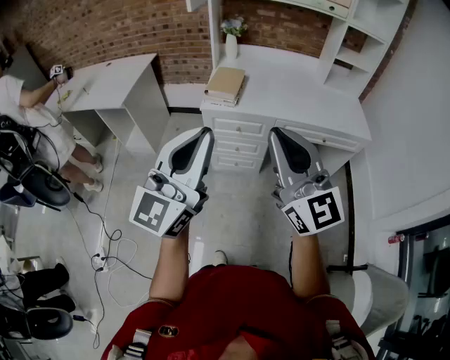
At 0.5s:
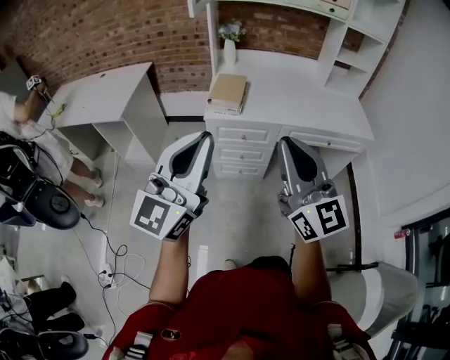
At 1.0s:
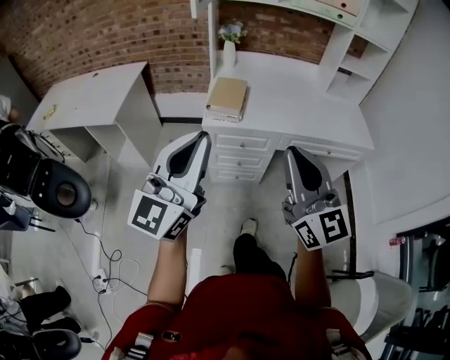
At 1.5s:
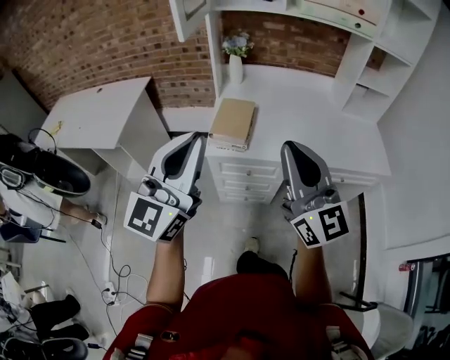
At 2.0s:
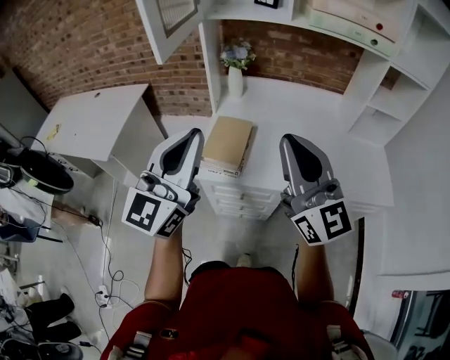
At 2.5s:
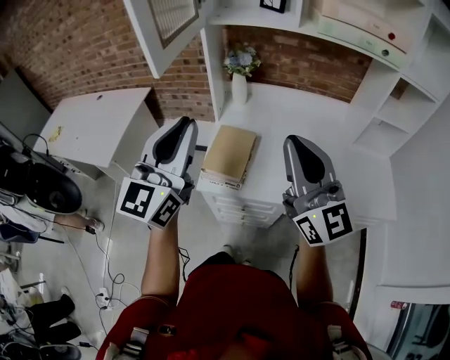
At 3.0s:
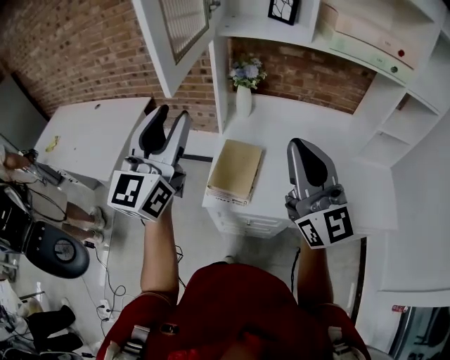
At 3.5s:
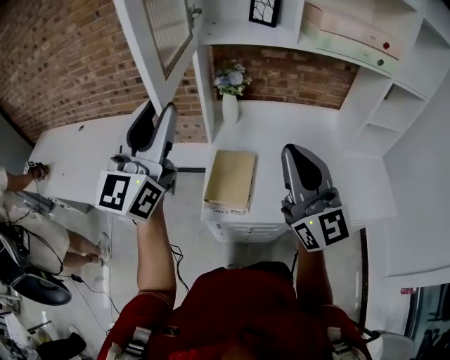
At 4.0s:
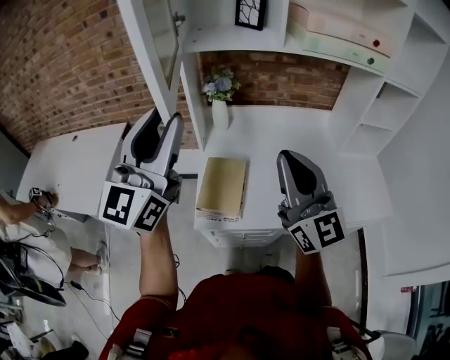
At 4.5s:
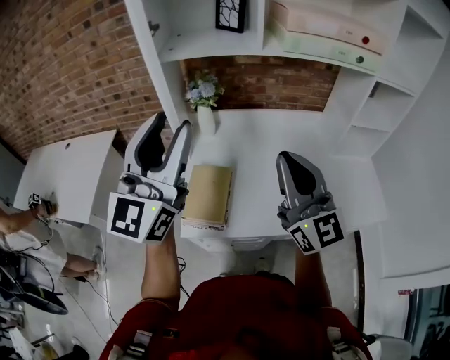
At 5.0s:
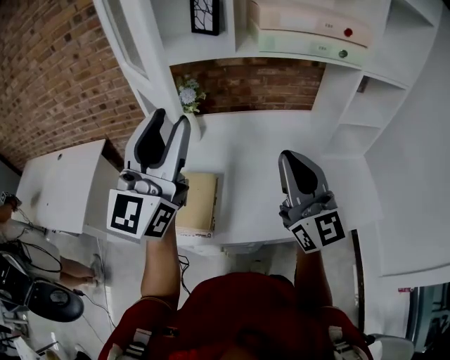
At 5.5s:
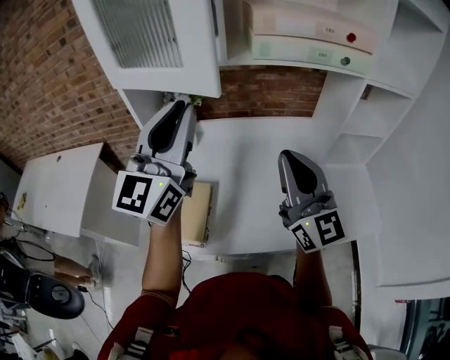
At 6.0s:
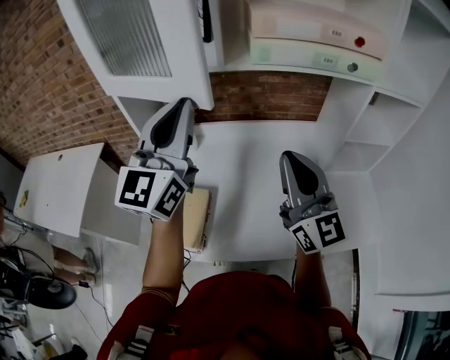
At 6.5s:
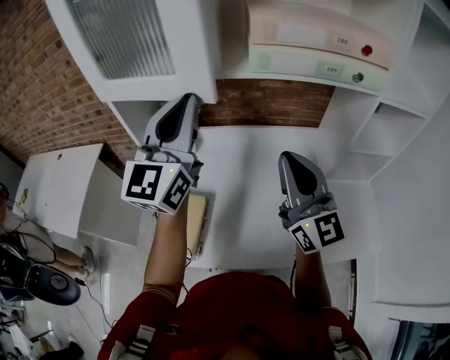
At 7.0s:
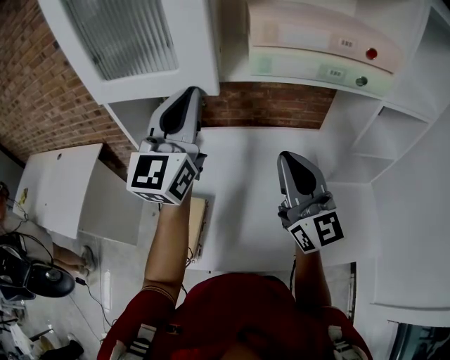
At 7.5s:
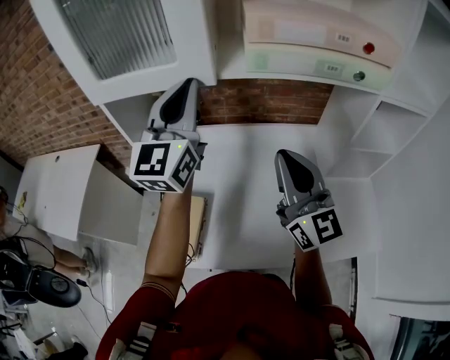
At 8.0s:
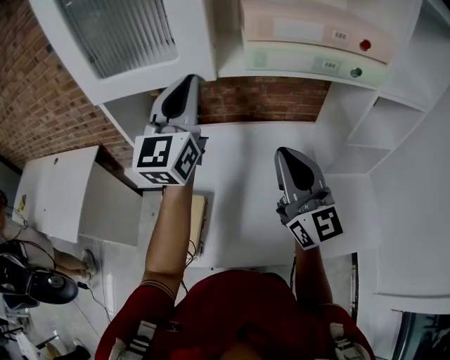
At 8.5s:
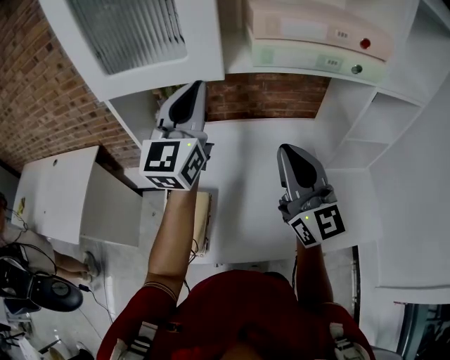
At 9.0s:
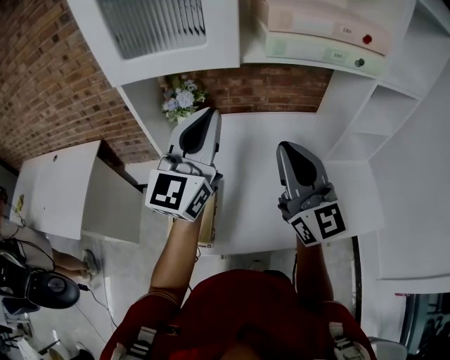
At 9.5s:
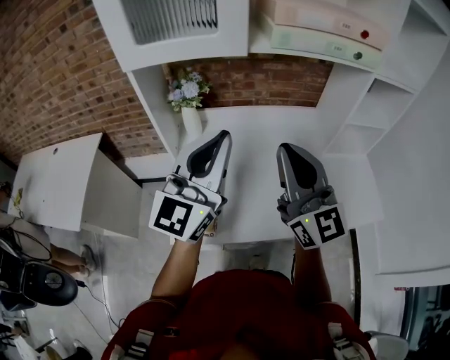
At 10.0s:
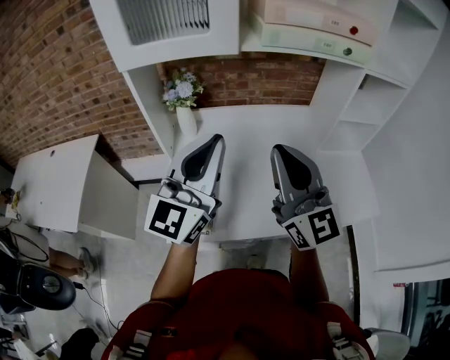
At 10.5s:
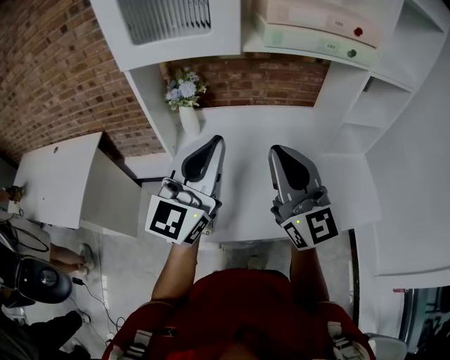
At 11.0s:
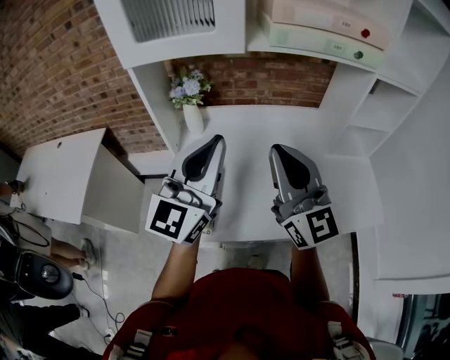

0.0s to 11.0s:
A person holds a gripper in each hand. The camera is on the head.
0.0s to 2.0s: The two grippers go approximately 40 cm forward.
2.0s to 3.5s: The right gripper travels forward by about 10 cm. Meanwhile the left gripper goes approximately 20 cm forward, to the left and upward, and opens.
3.5s to 5.5s: The grippers both shift to the right and forward by about 25 cm.
5.5s to 7.5s: The left gripper goes roughly 15 cm forward. The right gripper heads forward, covering approximately 10 cm.
7.5s to 9.0s: The left gripper moves backward, roughly 10 cm. The right gripper is displaced backward and to the left by about 10 cm.
9.0s to 11.0s: The right gripper travels backward by some 5 cm, while the left gripper goes some 10 cm backward.

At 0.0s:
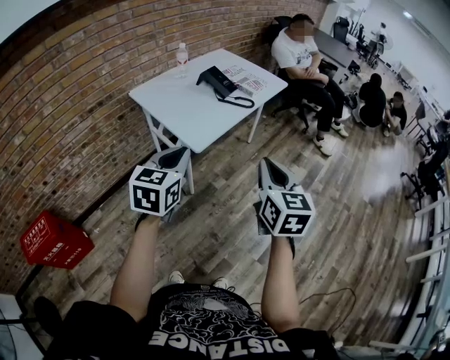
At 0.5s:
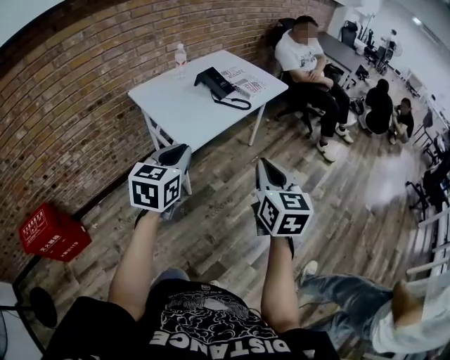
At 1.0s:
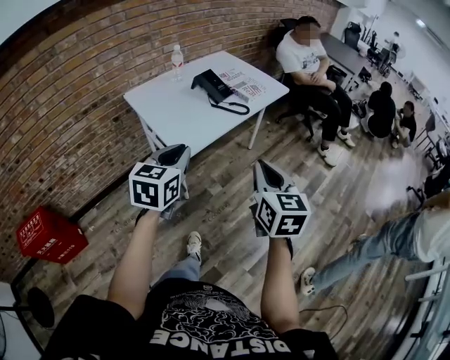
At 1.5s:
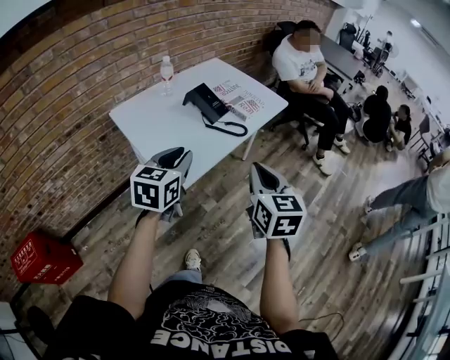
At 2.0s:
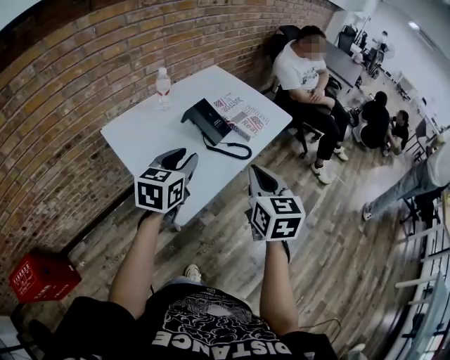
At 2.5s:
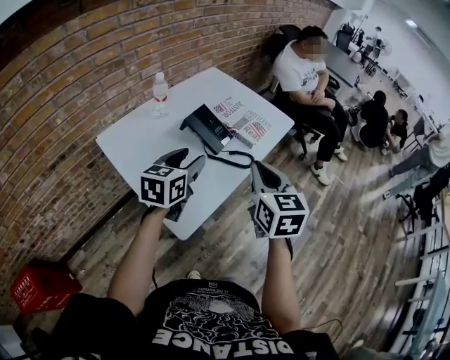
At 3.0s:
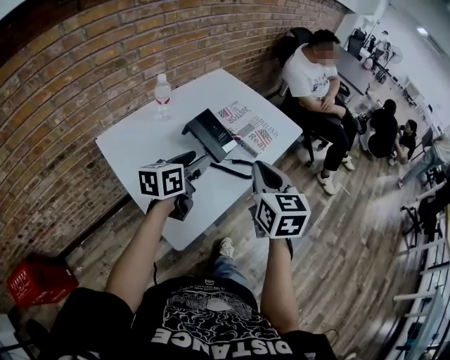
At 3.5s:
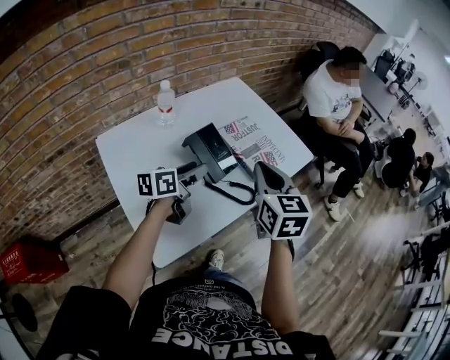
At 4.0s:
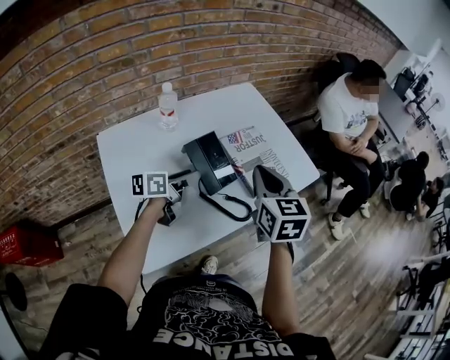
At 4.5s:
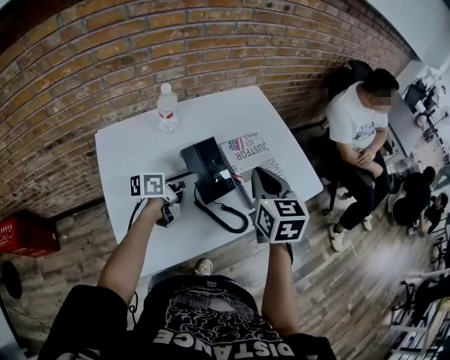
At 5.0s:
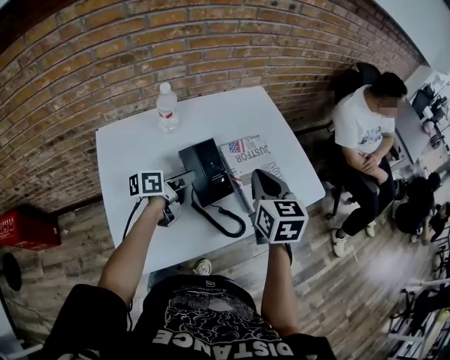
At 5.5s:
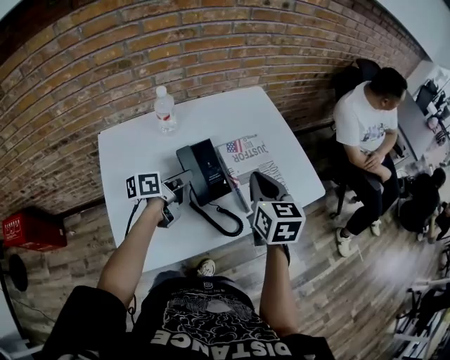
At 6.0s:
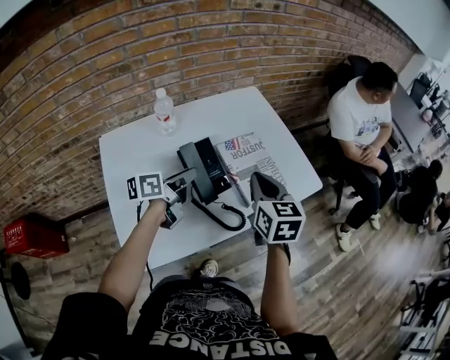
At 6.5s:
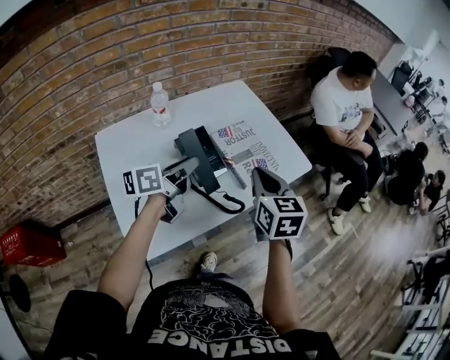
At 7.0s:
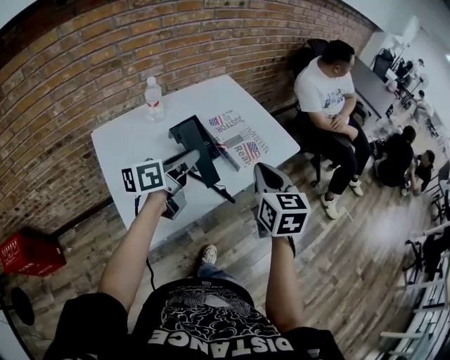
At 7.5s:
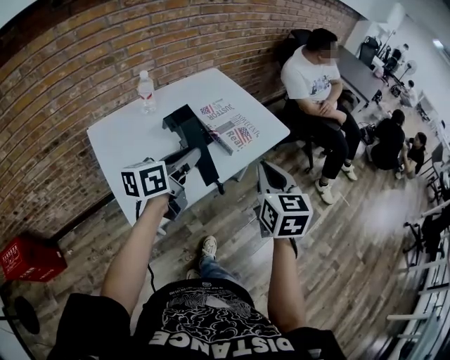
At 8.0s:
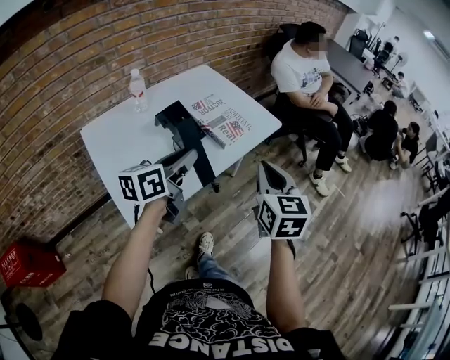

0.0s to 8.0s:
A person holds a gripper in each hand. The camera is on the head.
0.0s to 2.0s: Both grippers move forward, approximately 35 cm. The left gripper opens up.
2.0s to 4.0s: The left gripper shifts approximately 25 cm forward and downward, rolls counterclockwise, seen from behind, by approximately 40 degrees, and opens up; the right gripper shifts roughly 30 cm forward.
4.0s to 6.0s: The left gripper moves about 5 cm, and closes its fingers; the right gripper changes place by roughly 5 cm.
6.0s to 8.0s: The right gripper heads backward and to the right, covering about 25 cm, and turns by about 20 degrees; the left gripper heads backward, upward and to the right, covering roughly 25 cm, and rotates some 20 degrees.

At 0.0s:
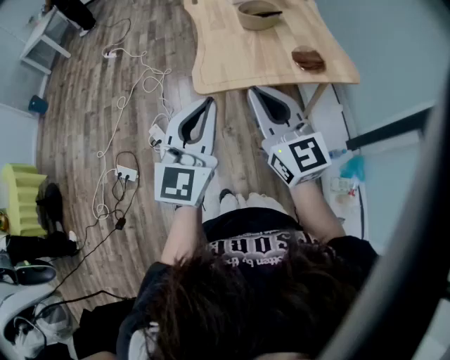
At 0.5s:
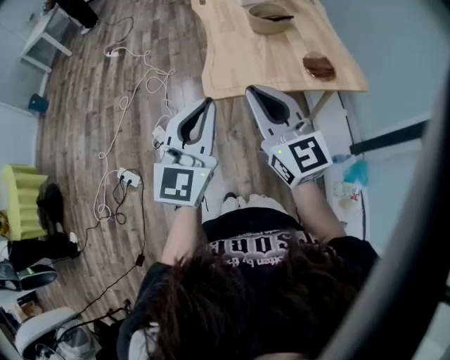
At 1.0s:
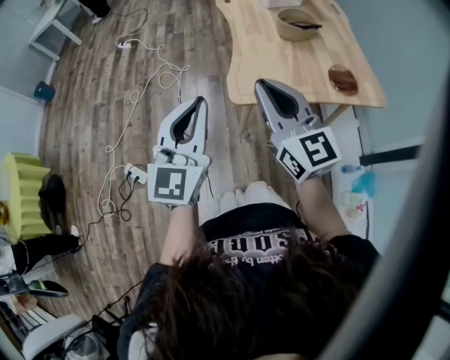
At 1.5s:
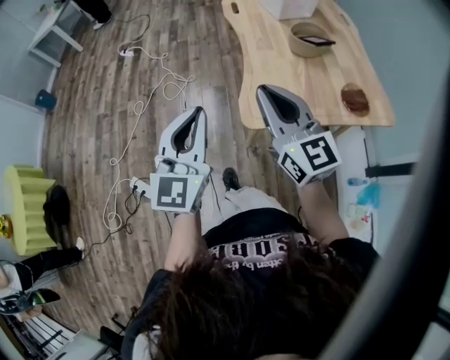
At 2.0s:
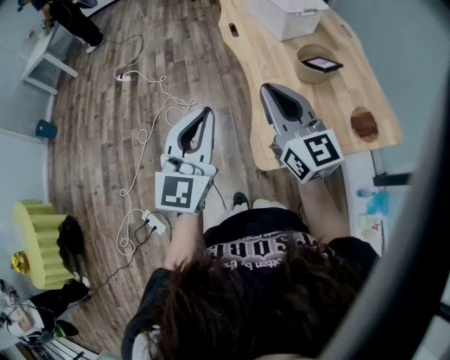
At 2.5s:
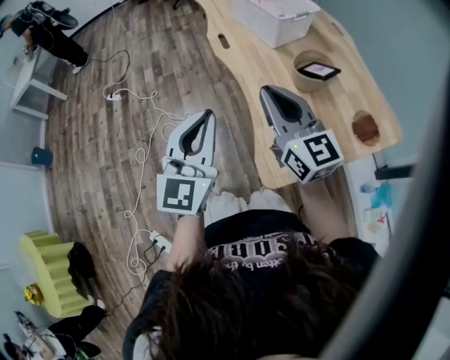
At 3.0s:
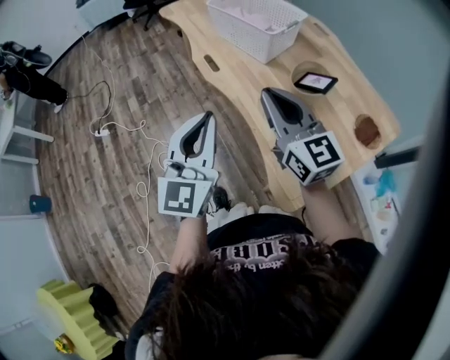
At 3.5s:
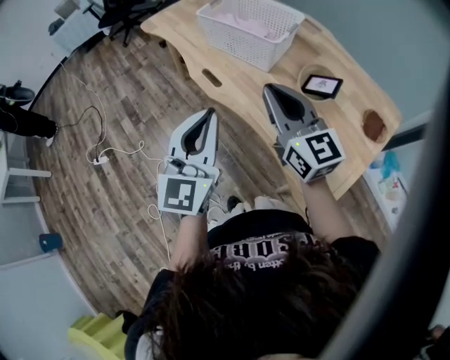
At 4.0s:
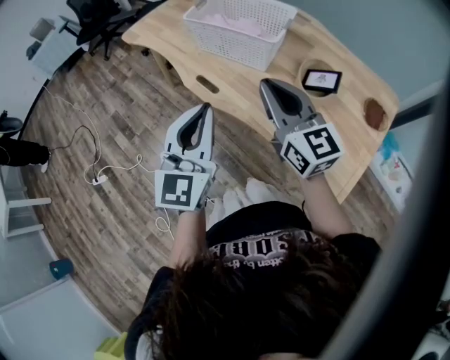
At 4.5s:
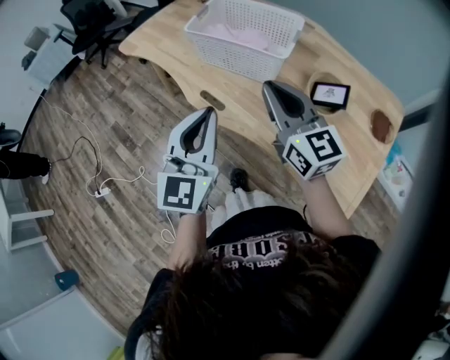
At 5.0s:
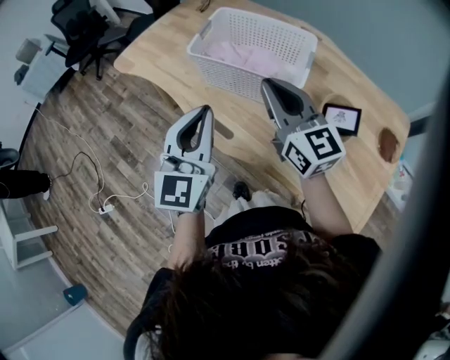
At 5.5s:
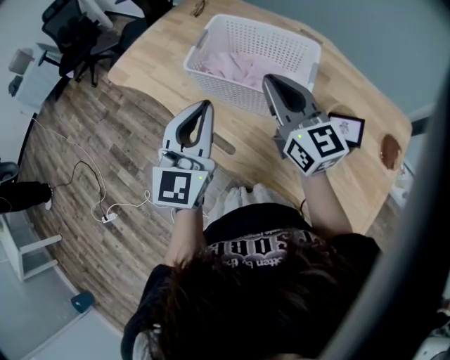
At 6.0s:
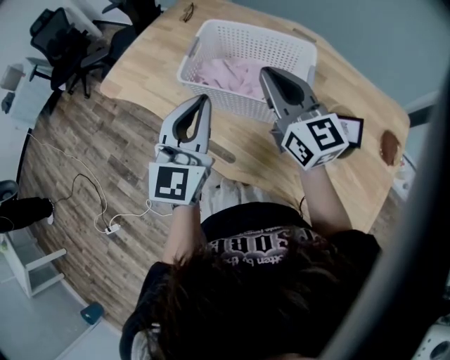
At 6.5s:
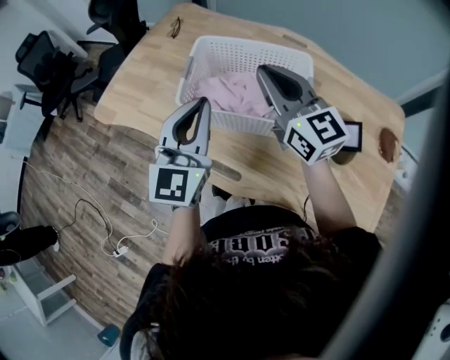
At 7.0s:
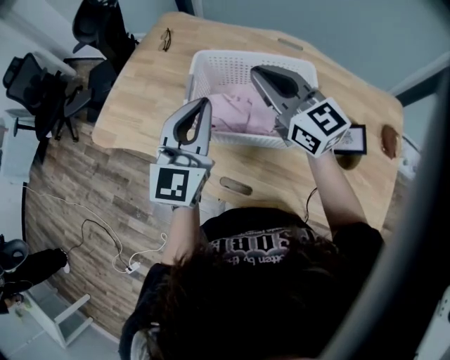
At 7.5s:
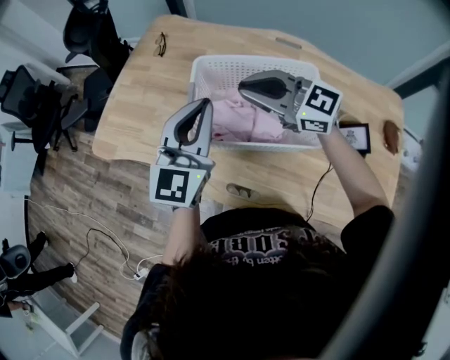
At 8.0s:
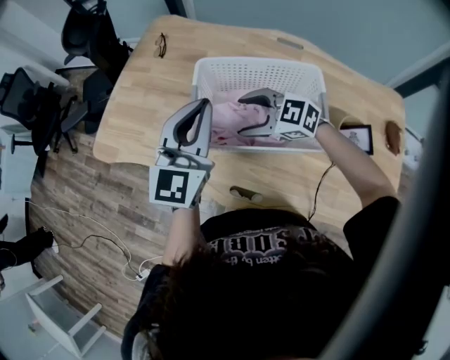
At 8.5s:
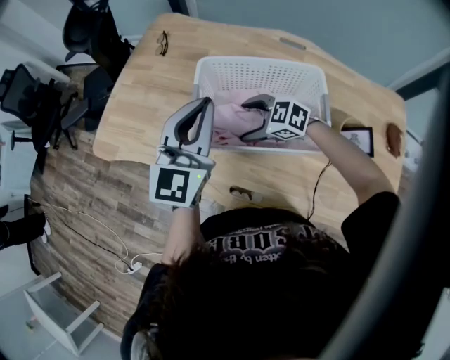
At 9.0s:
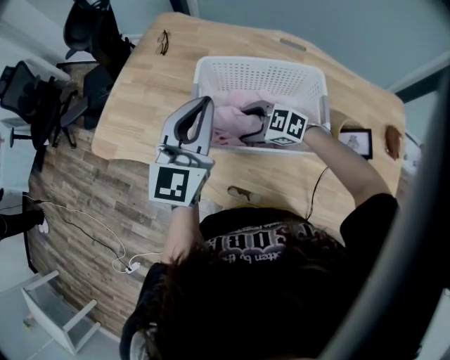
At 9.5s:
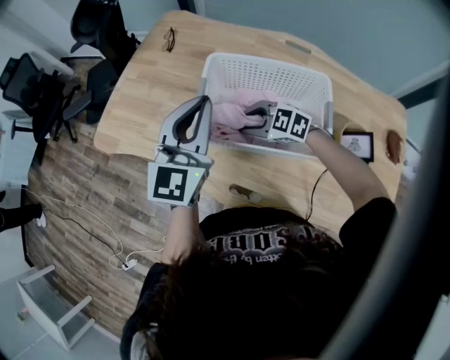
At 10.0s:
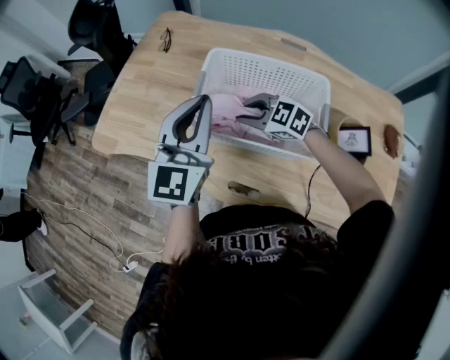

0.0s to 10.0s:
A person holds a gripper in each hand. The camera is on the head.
0.0s to 2.0s: Both grippers travel together forward and to the left, about 35 cm.
2.0s to 4.0s: The right gripper moves about 30 cm, and rotates about 30 degrees. Meanwhile the left gripper shifts by some 35 cm, and swivels approximately 30 degrees.
4.0s to 6.0s: Both grippers move forward, roughly 30 cm.
6.0s to 8.0s: The left gripper is displaced forward by about 15 cm, while the right gripper heads downward, forward and to the left, covering approximately 20 cm, points its fingers about 30 degrees further downward, and opens its fingers.
8.0s to 10.0s: The right gripper closes up.
